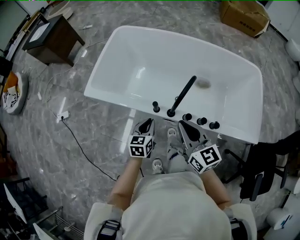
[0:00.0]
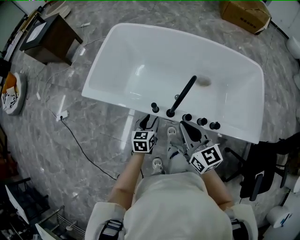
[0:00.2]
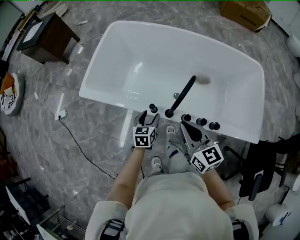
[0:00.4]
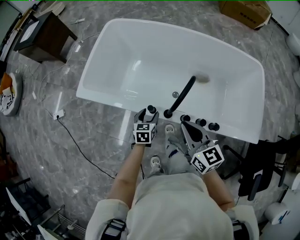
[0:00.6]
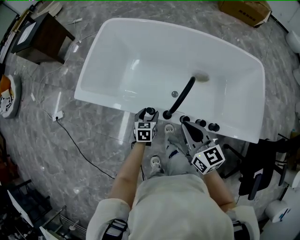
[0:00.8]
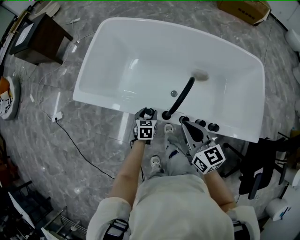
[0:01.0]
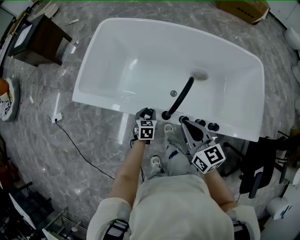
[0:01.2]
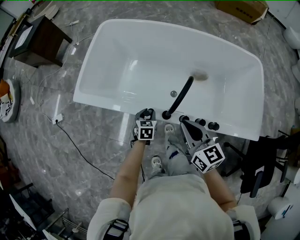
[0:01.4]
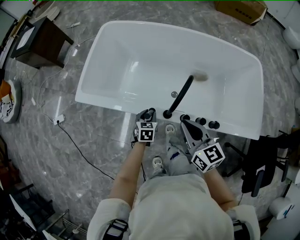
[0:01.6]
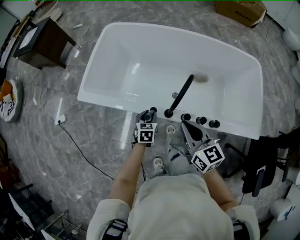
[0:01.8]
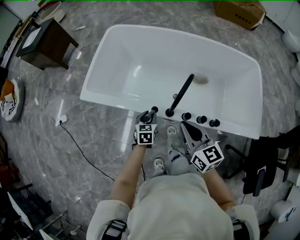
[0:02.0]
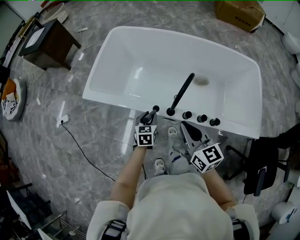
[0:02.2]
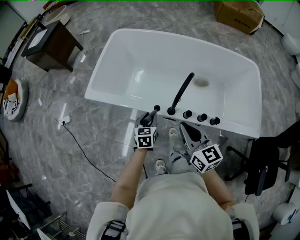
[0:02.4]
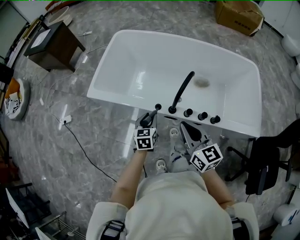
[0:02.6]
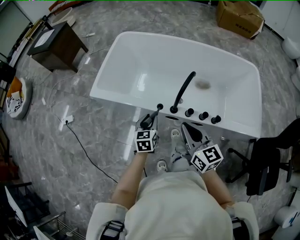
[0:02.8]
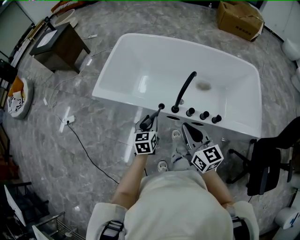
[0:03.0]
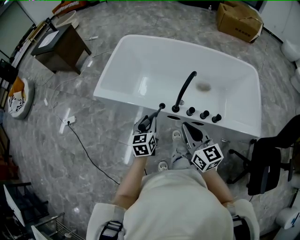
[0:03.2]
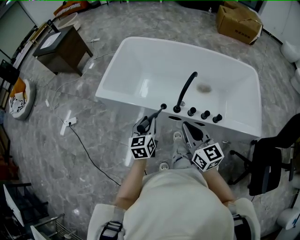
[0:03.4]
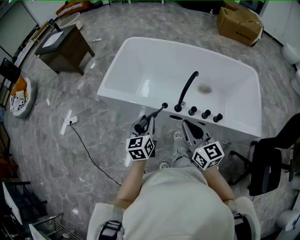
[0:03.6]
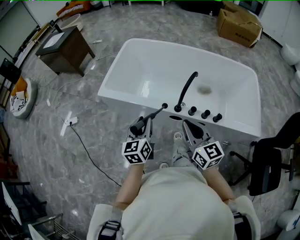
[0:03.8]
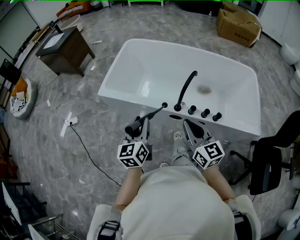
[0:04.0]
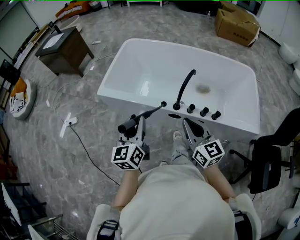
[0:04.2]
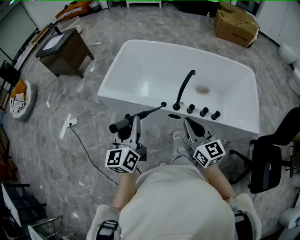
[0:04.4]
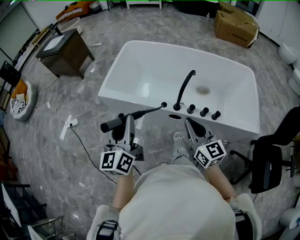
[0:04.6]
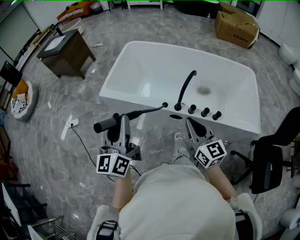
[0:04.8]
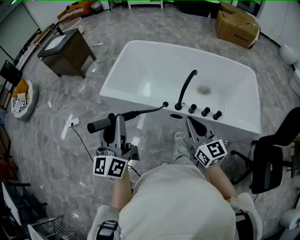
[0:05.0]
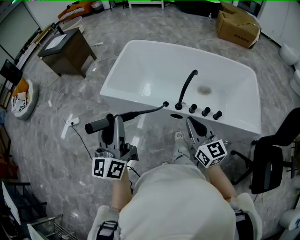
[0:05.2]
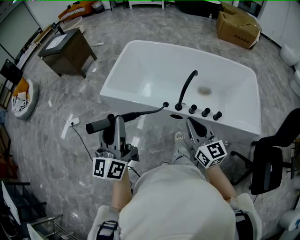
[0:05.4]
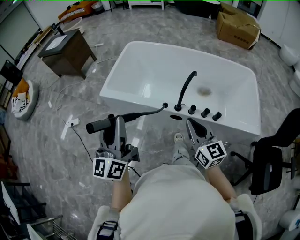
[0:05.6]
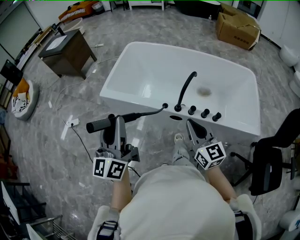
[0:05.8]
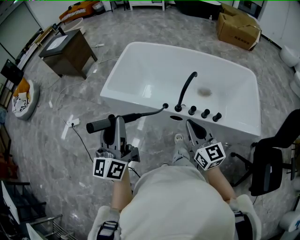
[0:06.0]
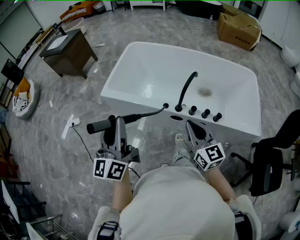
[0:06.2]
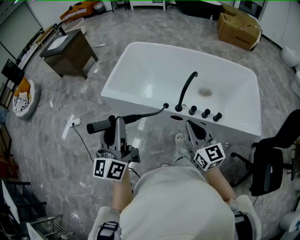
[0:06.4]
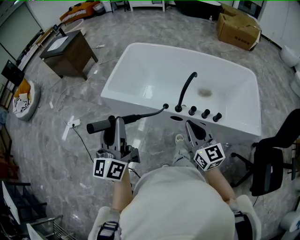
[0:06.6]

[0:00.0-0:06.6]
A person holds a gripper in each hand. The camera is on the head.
0:00.0 to 0:01.6: The right gripper ends up roughly 5 cm from where it was. The left gripper goes roughly 15 cm downward and forward, and opens up.
0:01.6 to 0:03.2: The left gripper goes about 25 cm upward, backward and to the left, and rotates approximately 20 degrees, while the right gripper heads backward, upward and to the left, covering roughly 15 cm.
0:03.2 to 0:05.0: The left gripper goes some 30 cm upward and to the left, and tilts its fingers roughly 40 degrees upward. Meanwhile the right gripper shifts by some 5 cm.
0:05.0 to 0:06.6: Both grippers stay about where they are.

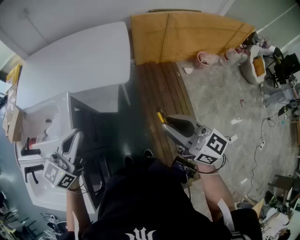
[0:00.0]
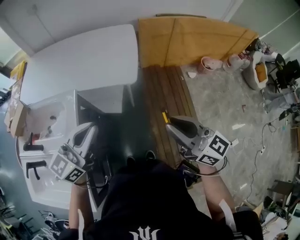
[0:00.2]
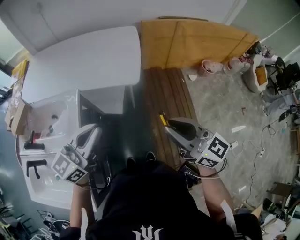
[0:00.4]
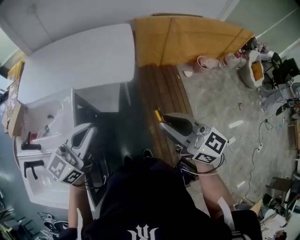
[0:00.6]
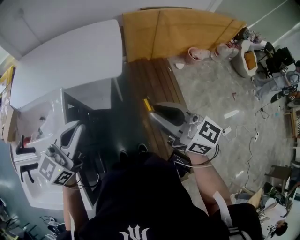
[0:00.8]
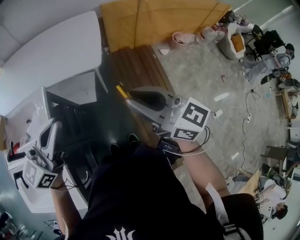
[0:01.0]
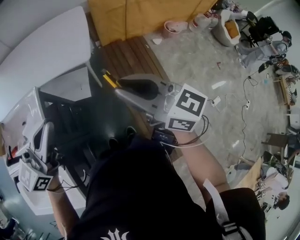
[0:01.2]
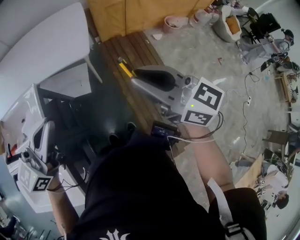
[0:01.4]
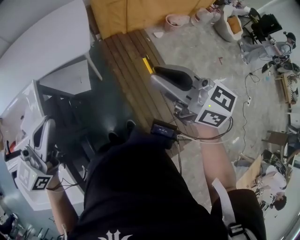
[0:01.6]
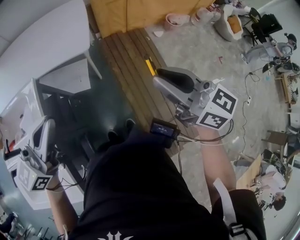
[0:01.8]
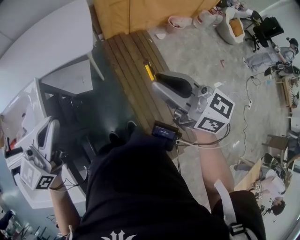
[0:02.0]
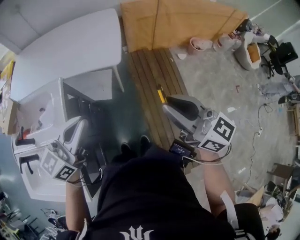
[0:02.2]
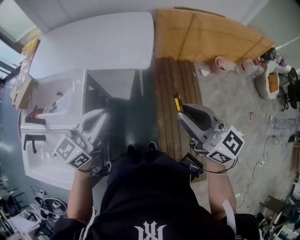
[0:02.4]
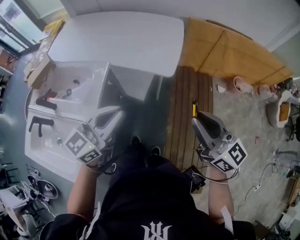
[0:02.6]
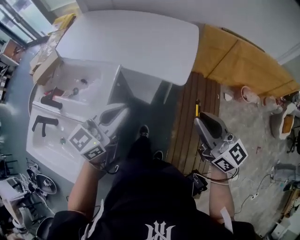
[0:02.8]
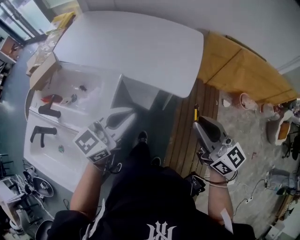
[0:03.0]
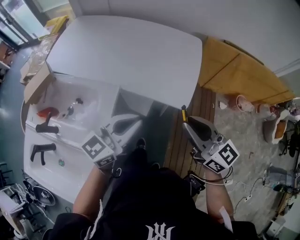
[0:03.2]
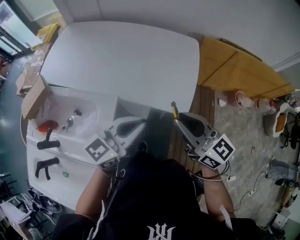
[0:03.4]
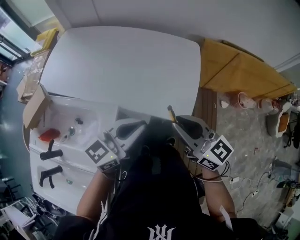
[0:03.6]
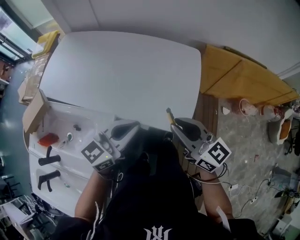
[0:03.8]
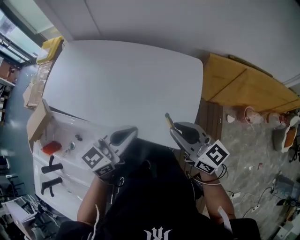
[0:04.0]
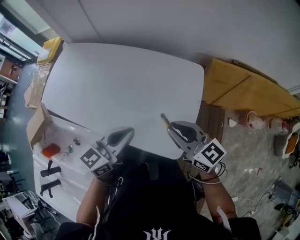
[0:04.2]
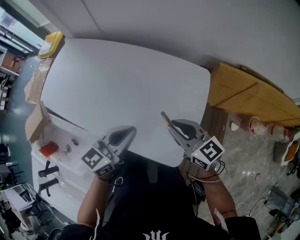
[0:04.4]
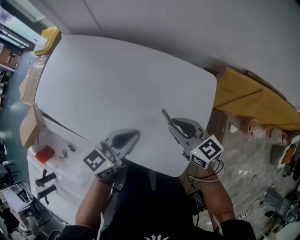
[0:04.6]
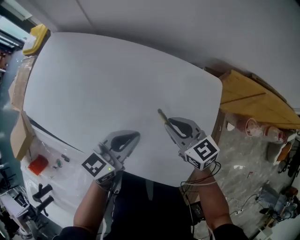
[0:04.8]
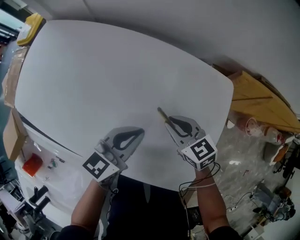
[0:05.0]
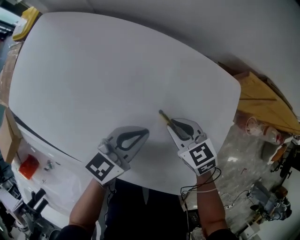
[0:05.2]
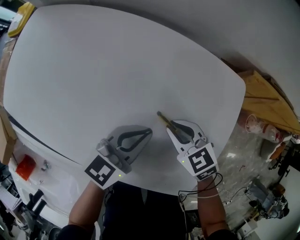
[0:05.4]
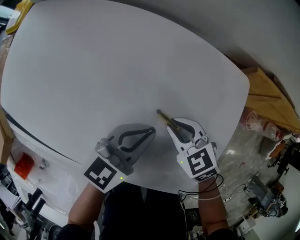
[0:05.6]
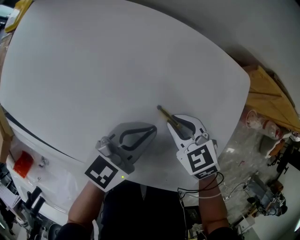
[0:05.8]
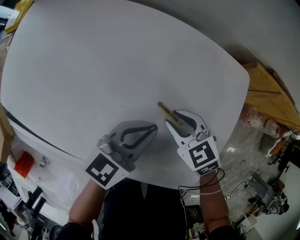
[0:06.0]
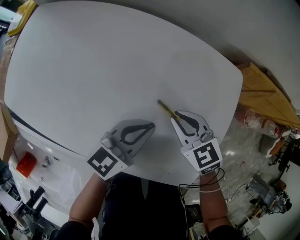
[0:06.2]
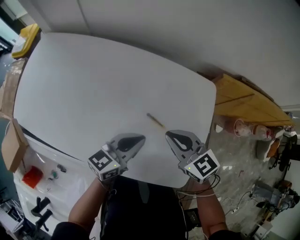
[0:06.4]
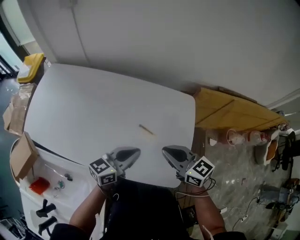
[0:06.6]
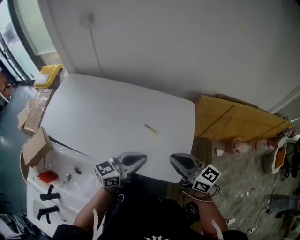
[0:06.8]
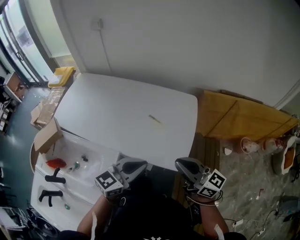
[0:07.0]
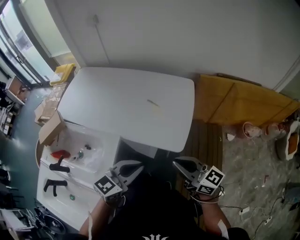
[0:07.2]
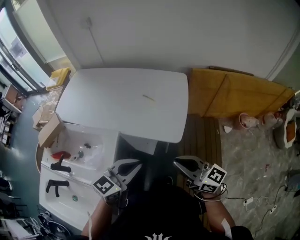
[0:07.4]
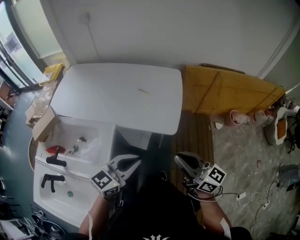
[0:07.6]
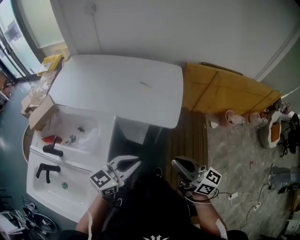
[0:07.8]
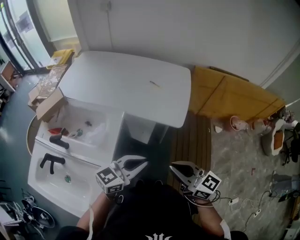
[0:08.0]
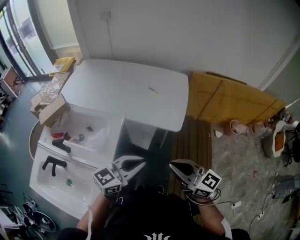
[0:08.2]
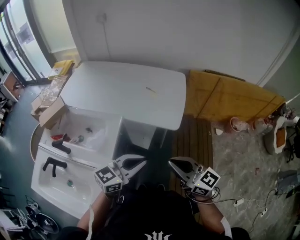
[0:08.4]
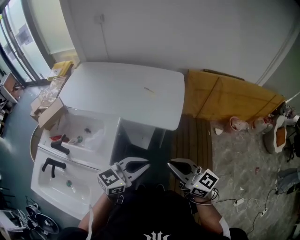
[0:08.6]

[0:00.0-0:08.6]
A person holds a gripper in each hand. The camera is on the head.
0:00.0 to 0:01.4: The left gripper travels to the right and backward by some 10 cm. The right gripper changes place by some 5 cm.
0:01.4 to 0:02.8: Both grippers move to the left and forward, approximately 15 cm. The left gripper changes its angle by some 20 degrees.
0:02.8 to 0:04.4: The pair of grippers is taken forward, approximately 50 cm.
0:04.4 to 0:05.8: Both grippers move downward and forward, approximately 25 cm. The right gripper tips its fingers downward by about 40 degrees.
0:05.8 to 0:07.2: Both grippers are carried backward, approximately 50 cm. The two grippers go some 30 cm upward. The right gripper tips its fingers upward by some 50 degrees.
0:07.2 to 0:08.6: The grippers both shift backward by some 20 cm.

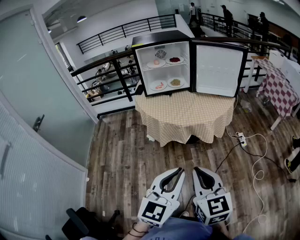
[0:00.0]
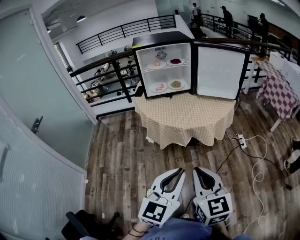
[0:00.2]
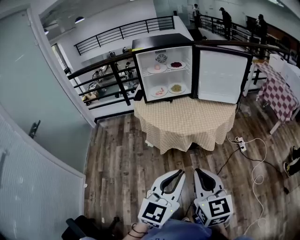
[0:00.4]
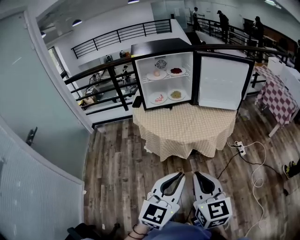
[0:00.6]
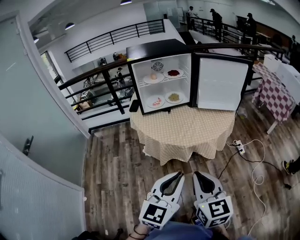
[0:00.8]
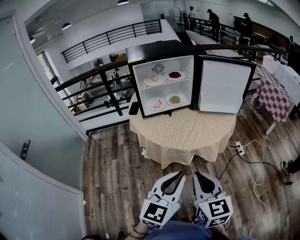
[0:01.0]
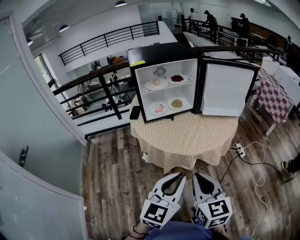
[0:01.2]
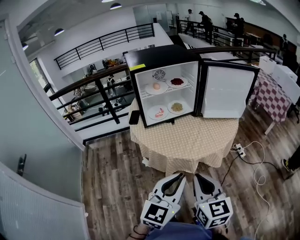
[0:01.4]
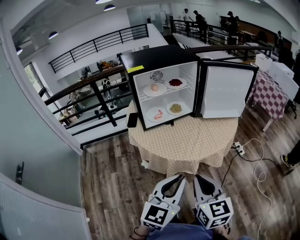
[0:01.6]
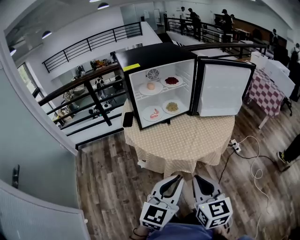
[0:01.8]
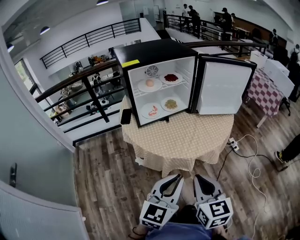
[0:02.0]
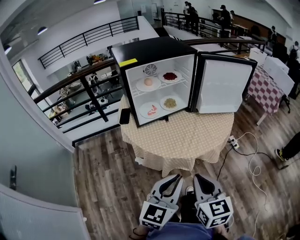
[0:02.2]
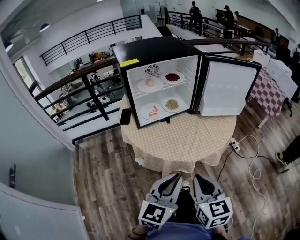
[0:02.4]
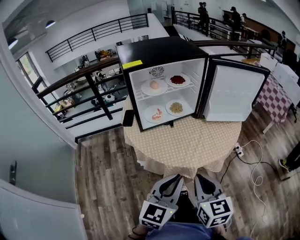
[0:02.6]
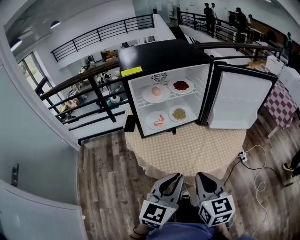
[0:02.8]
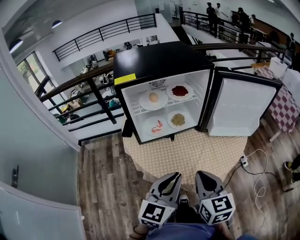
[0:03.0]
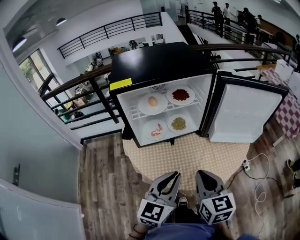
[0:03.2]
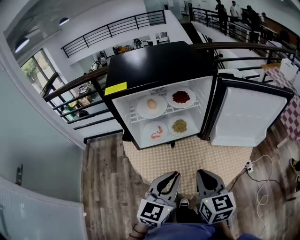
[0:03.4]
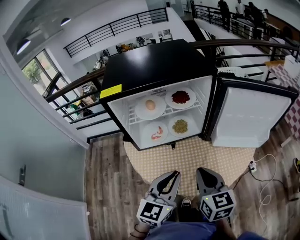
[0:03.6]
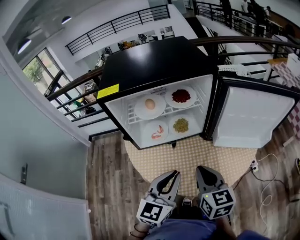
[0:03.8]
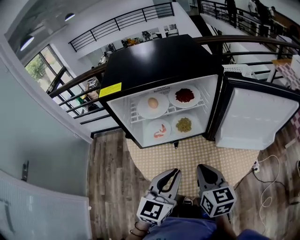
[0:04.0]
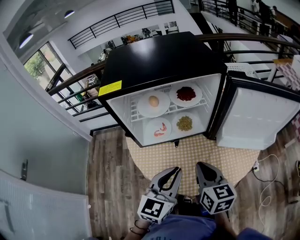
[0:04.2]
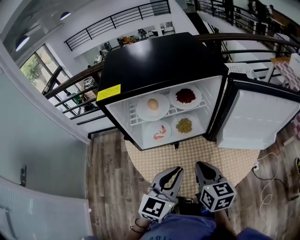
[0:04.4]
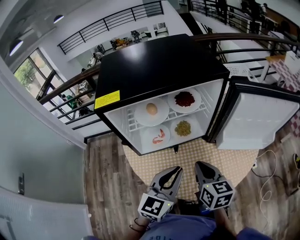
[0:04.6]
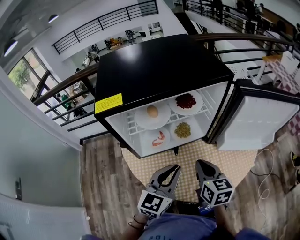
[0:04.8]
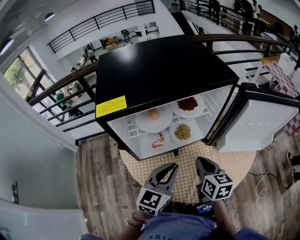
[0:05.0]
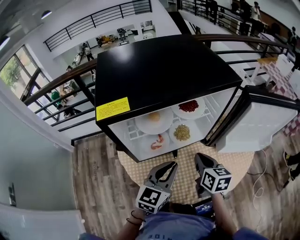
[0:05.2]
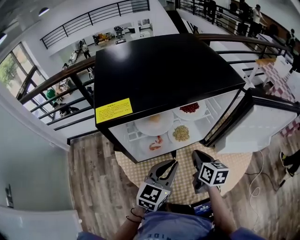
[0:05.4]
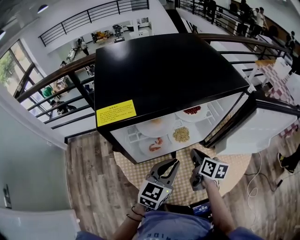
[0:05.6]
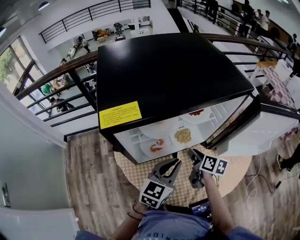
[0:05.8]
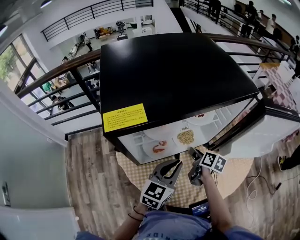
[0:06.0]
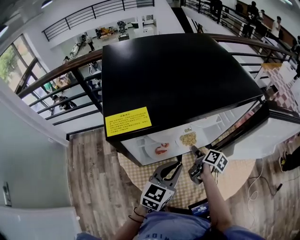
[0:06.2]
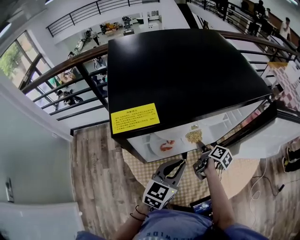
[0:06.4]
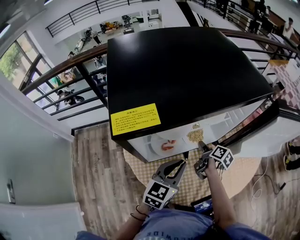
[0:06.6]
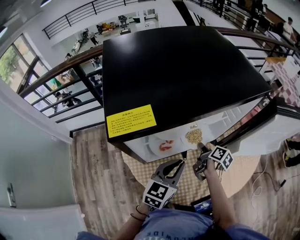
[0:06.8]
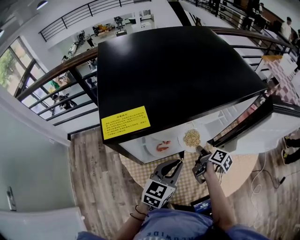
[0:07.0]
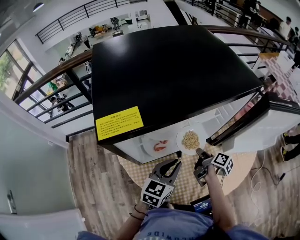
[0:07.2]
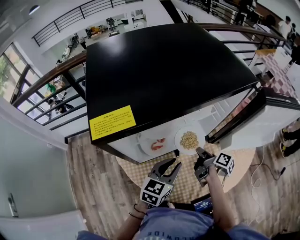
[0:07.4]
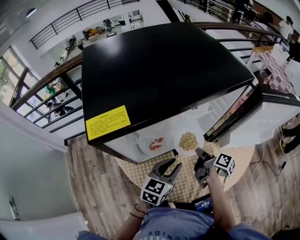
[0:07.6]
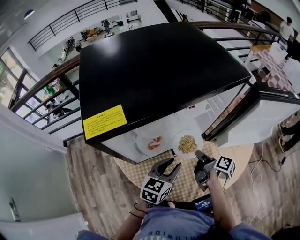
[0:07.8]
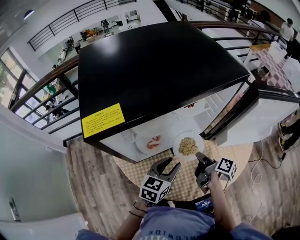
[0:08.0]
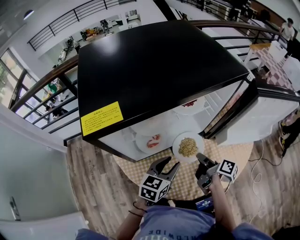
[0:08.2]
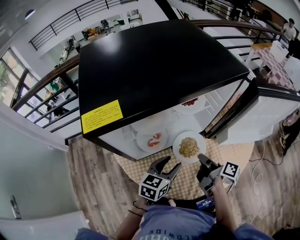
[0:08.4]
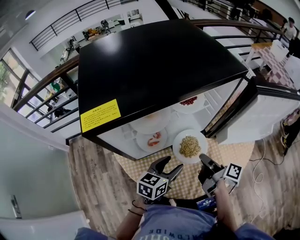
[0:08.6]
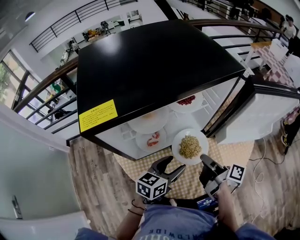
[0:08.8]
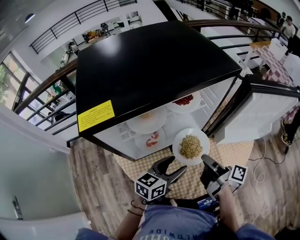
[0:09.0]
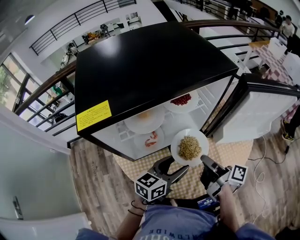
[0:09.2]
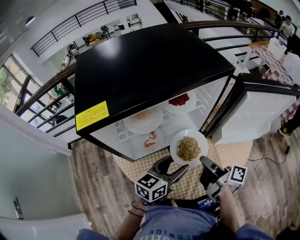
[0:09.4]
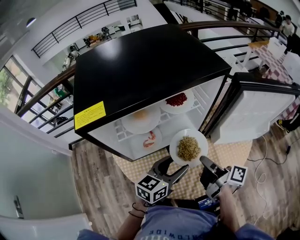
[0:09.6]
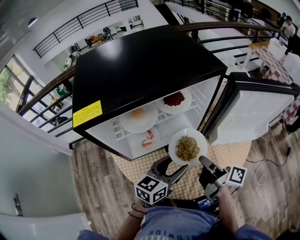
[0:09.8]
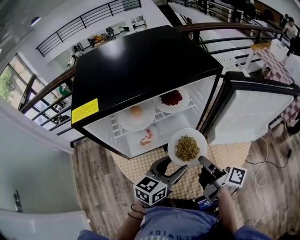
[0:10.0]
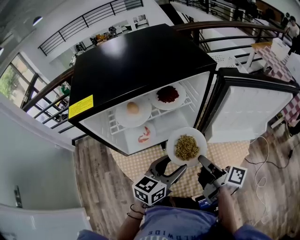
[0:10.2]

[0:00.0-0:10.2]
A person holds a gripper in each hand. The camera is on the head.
0:00.0 to 0:01.4: Both grippers travel together forward and to the left, about 25 cm.
0:01.4 to 0:03.0: Both grippers move forward, roughly 20 cm.
0:03.0 to 0:04.4: The two grippers go roughly 15 cm forward.
0:04.4 to 0:05.8: The left gripper goes about 15 cm forward, downward and to the left. The right gripper moves forward and downward, about 20 cm, changes its angle by about 30 degrees, and opens up.
0:05.8 to 0:07.2: The right gripper shifts some 5 cm downward, and turns by some 30 degrees.
0:07.2 to 0:08.8: The right gripper is displaced upward and backward by some 15 cm, and swivels roughly 20 degrees, while the left gripper opens.
0:08.8 to 0:10.2: The left gripper heads to the right and upward, covering some 10 cm. The right gripper ends up some 5 cm from where it was.
